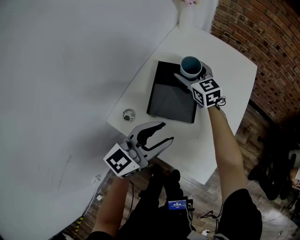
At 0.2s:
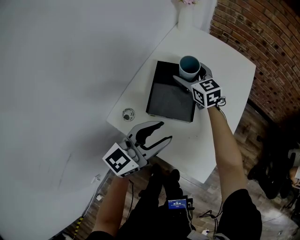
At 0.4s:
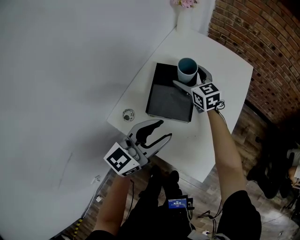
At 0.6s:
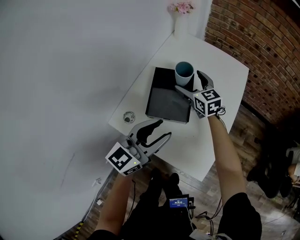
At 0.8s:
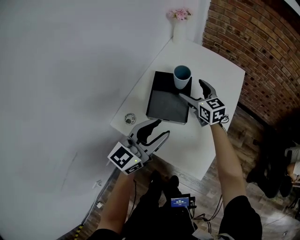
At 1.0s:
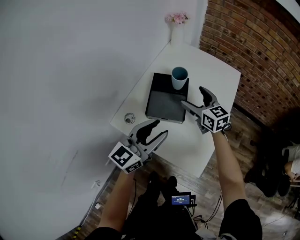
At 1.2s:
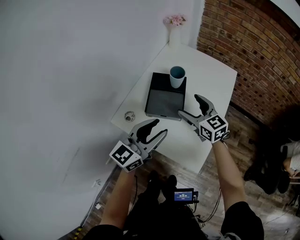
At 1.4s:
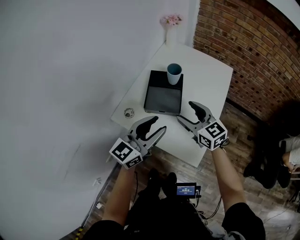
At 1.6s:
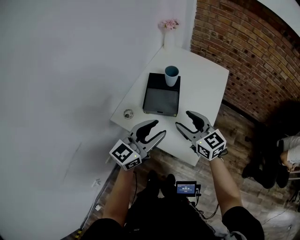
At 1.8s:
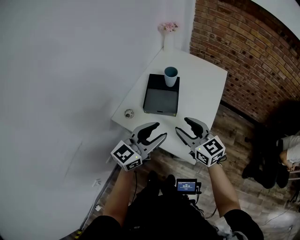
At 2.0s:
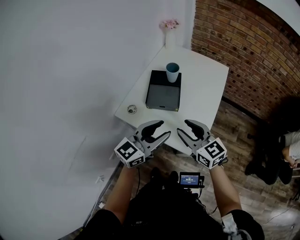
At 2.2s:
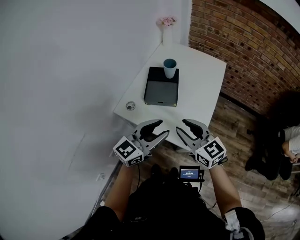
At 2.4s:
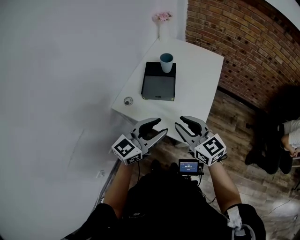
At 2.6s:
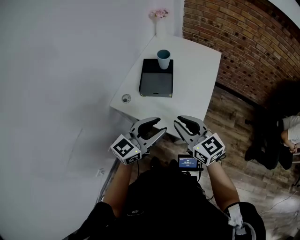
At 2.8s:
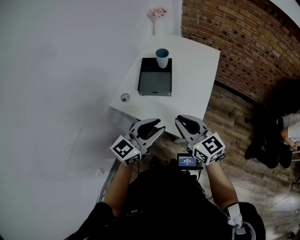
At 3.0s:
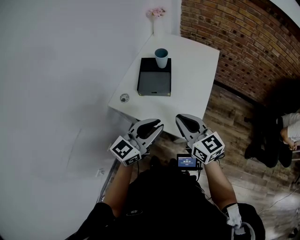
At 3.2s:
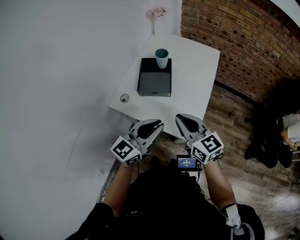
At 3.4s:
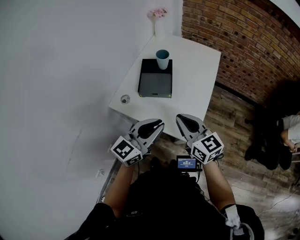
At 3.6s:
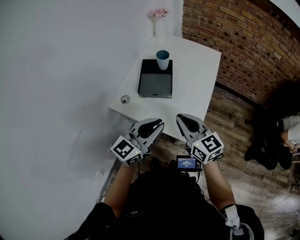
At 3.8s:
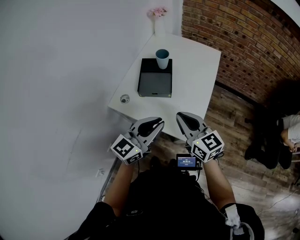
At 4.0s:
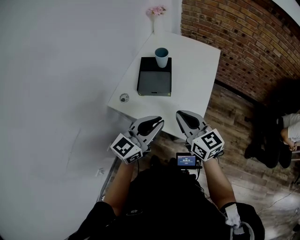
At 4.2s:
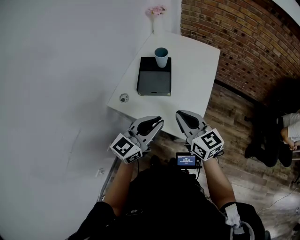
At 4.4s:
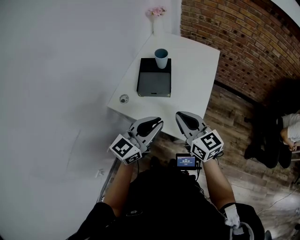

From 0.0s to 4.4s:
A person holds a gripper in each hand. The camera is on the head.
From 0.0s to 1.4s: The left gripper is displaced upward by roughly 5 cm. Meanwhile the right gripper is displaced backward and upward by roughly 25 cm.
From 1.4s to 3.0s: The two grippers go approximately 15 cm backward. The right gripper closes up.
From 3.0s to 4.4s: There are only small adjustments of the grippers.

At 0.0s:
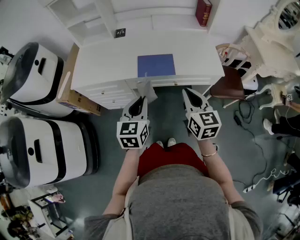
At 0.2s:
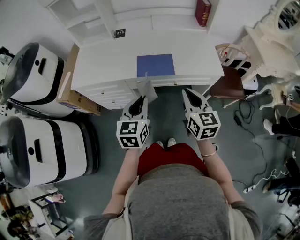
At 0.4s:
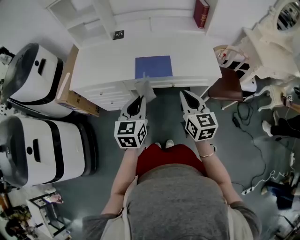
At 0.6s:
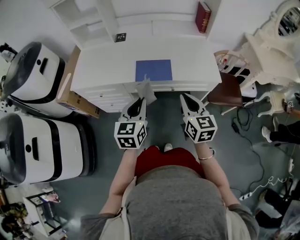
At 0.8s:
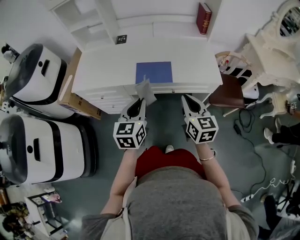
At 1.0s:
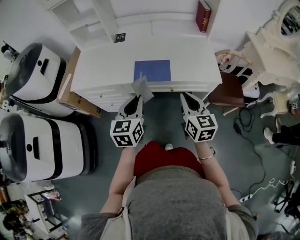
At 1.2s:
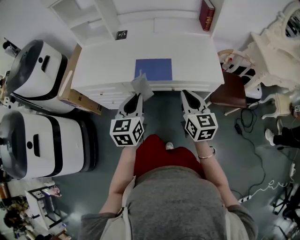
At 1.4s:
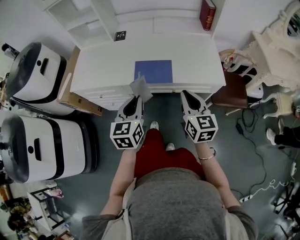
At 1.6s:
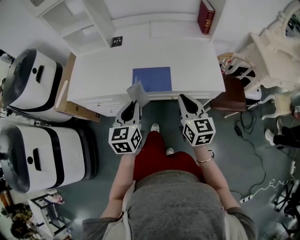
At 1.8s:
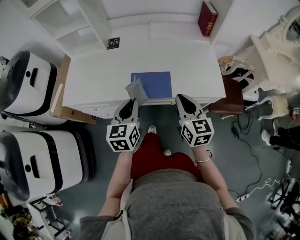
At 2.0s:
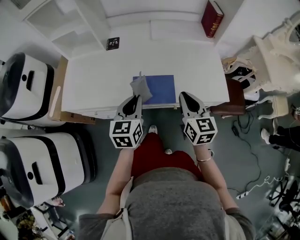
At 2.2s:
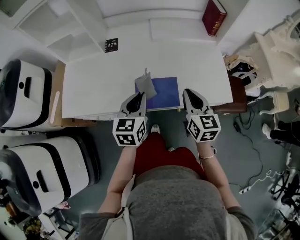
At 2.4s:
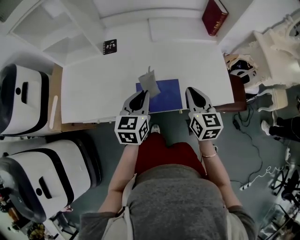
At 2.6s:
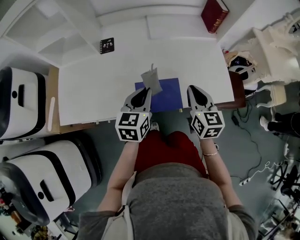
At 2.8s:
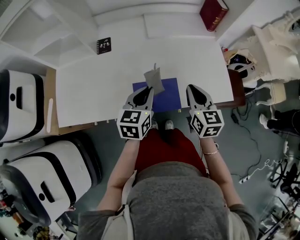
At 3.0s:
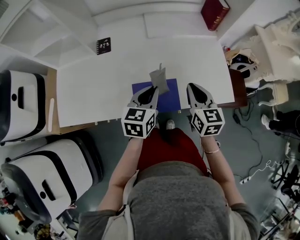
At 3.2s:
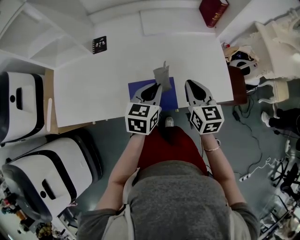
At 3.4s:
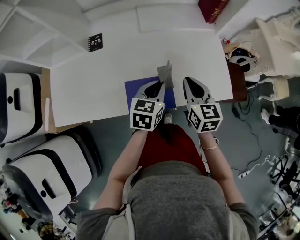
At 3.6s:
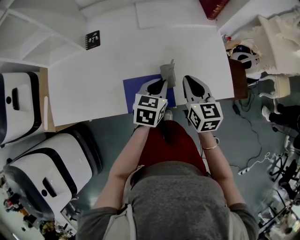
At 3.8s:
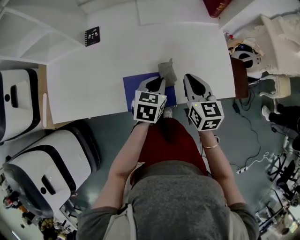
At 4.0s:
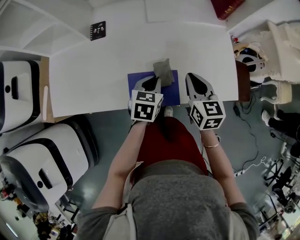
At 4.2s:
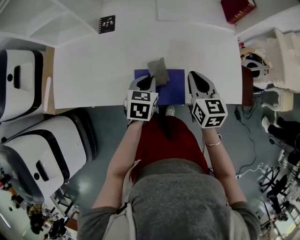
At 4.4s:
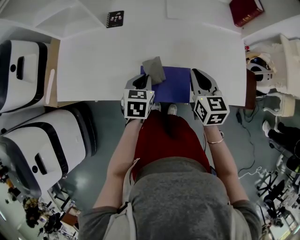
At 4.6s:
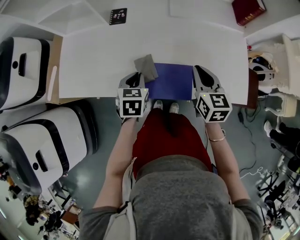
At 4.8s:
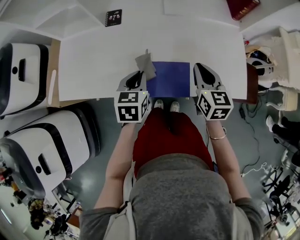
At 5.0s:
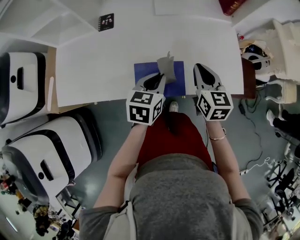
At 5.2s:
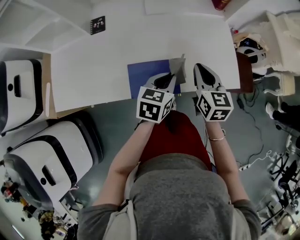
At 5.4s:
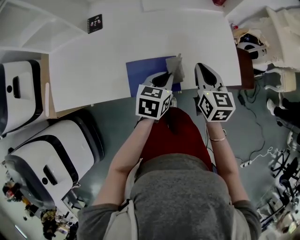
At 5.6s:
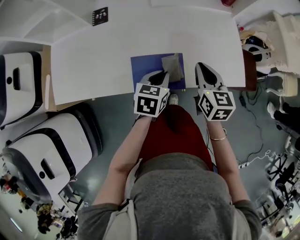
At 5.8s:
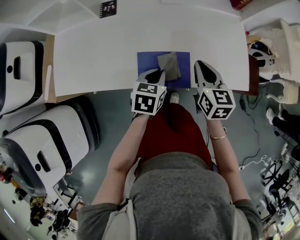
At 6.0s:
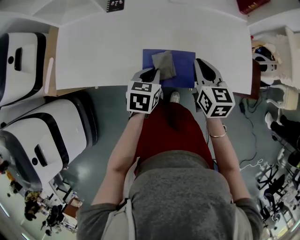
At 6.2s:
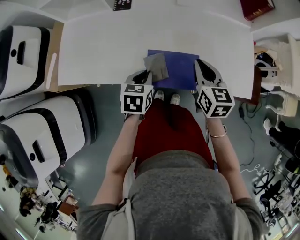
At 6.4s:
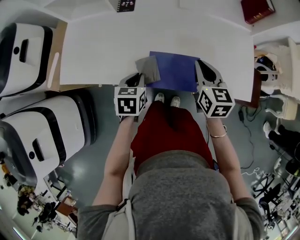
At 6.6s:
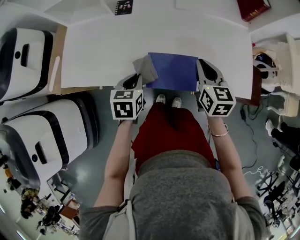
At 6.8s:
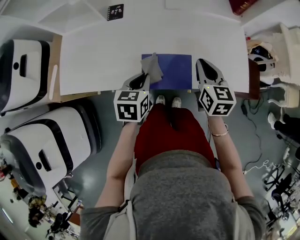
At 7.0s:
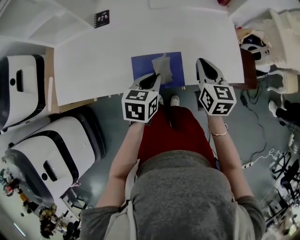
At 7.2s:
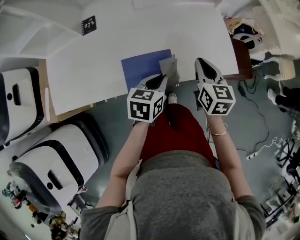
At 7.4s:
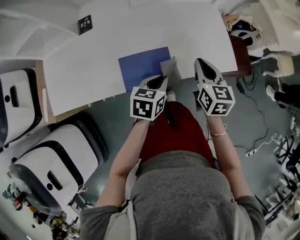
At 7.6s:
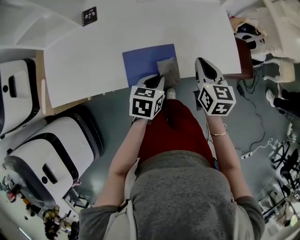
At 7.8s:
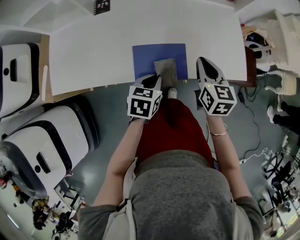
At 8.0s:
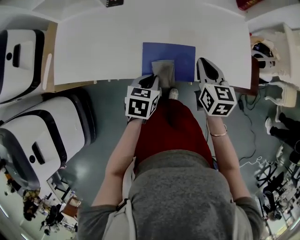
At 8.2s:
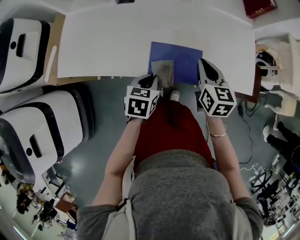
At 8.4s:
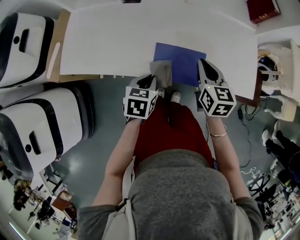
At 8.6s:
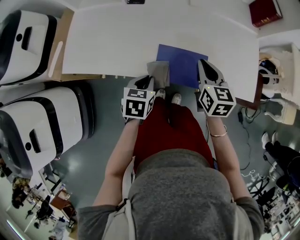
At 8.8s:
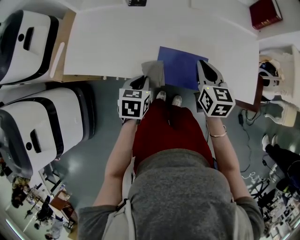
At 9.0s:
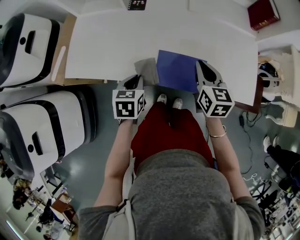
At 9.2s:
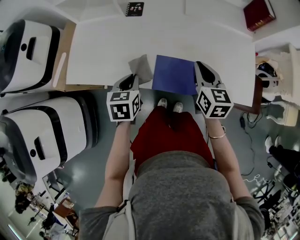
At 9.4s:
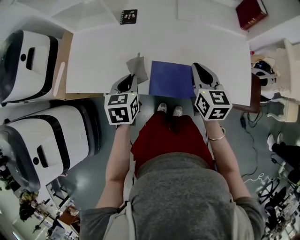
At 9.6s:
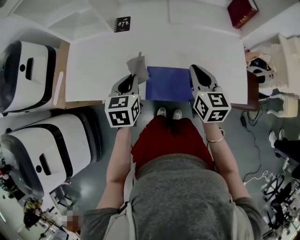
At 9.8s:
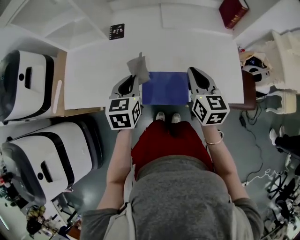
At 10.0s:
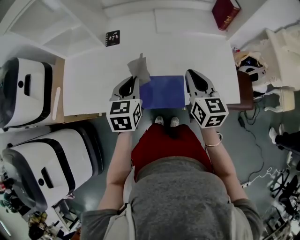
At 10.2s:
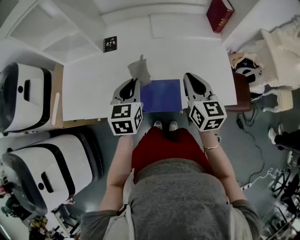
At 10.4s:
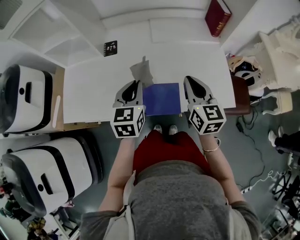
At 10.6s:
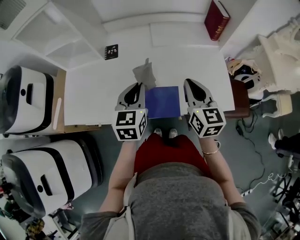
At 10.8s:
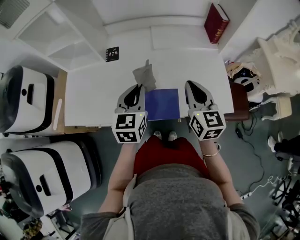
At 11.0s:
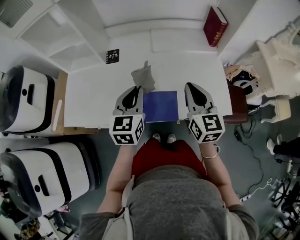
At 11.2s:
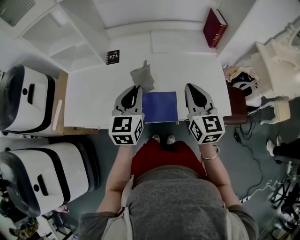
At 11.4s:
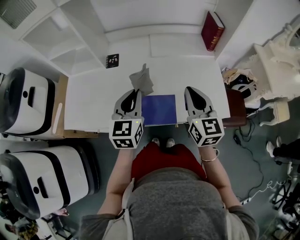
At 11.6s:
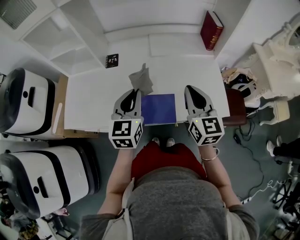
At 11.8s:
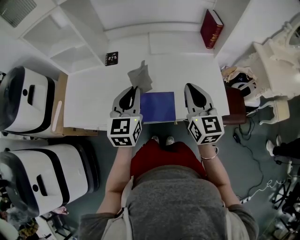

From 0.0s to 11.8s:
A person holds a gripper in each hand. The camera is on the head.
From 0.0s to 1.4s: The right gripper moves approximately 5 cm. The left gripper changes place by about 5 cm.
From 1.4s to 3.0s: The two grippers go roughly 25 cm forward. The left gripper changes its angle by approximately 20 degrees.
From 3.0s to 4.4s: The right gripper shifts by about 5 cm, while the left gripper travels downward and to the left by roughly 10 cm, and swivels roughly 20 degrees.
From 4.4s to 6.0s: The right gripper travels to the right and back again, about 10 cm each way. The left gripper moves left and right over some 20 cm, changing direction 2 times.
From 6.0s to 7.4s: The right gripper moves approximately 10 cm. The left gripper changes place by roughly 10 cm.
From 7.4s to 8.8s: The left gripper ends up about 20 cm from where it was, and turns by about 30 degrees. Meanwhile the right gripper changes place by approximately 15 cm, and changes its angle by roughly 20 degrees.
From 8.8s to 10.4s: The right gripper moves upward and to the right, approximately 10 cm. Meanwhile the left gripper moves upward, forward and to the right, roughly 20 cm, and rotates roughly 30 degrees.
From 10.4s to 11.8s: The grippers both shift upward by about 5 cm.

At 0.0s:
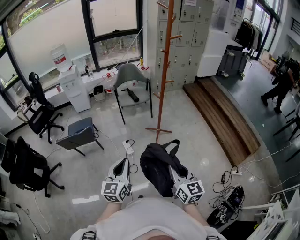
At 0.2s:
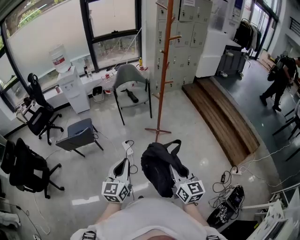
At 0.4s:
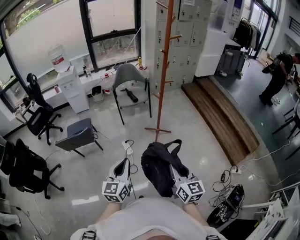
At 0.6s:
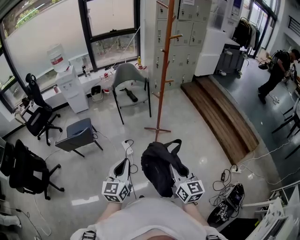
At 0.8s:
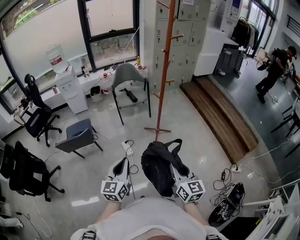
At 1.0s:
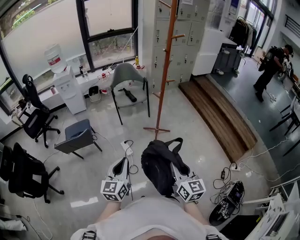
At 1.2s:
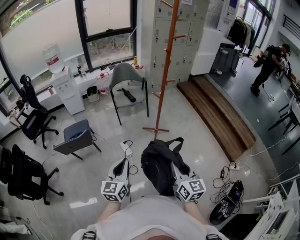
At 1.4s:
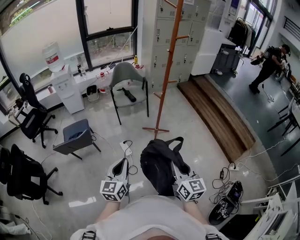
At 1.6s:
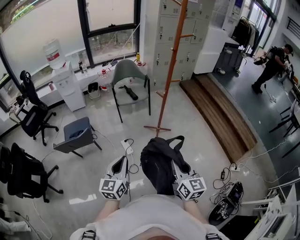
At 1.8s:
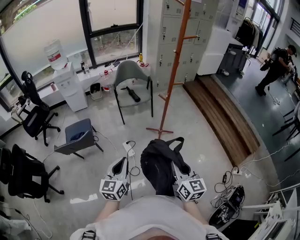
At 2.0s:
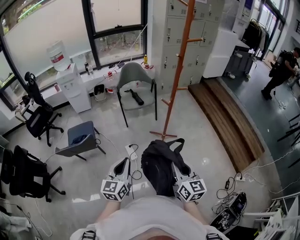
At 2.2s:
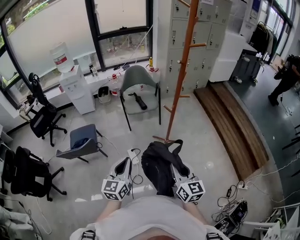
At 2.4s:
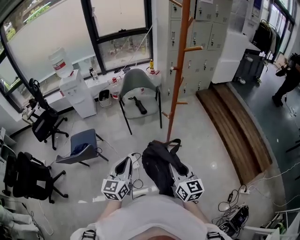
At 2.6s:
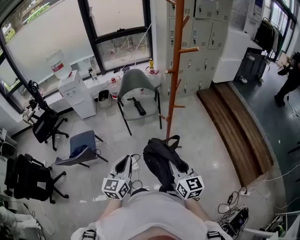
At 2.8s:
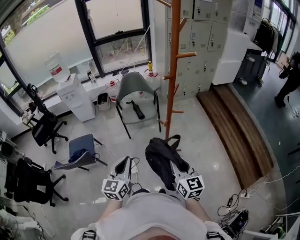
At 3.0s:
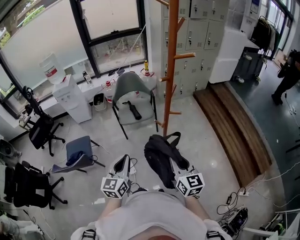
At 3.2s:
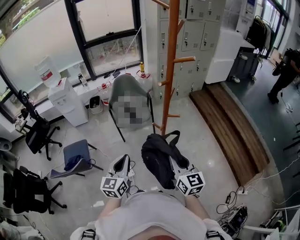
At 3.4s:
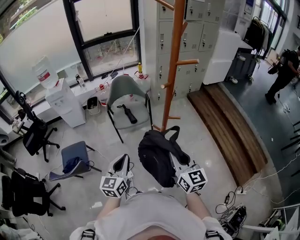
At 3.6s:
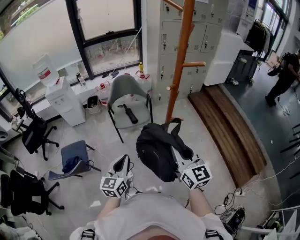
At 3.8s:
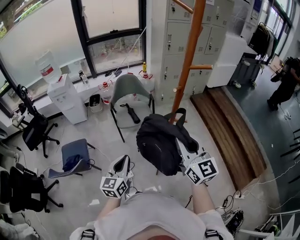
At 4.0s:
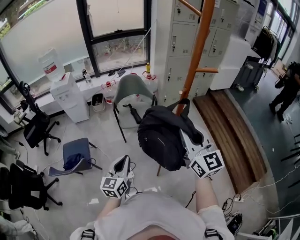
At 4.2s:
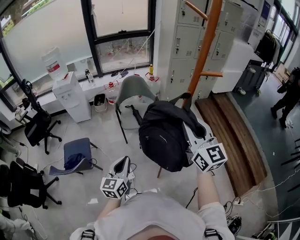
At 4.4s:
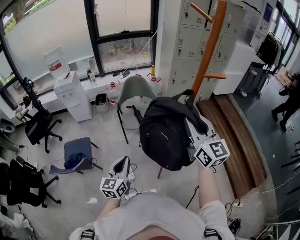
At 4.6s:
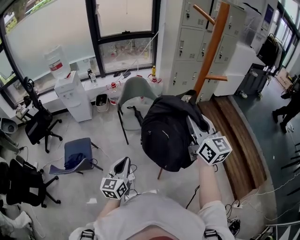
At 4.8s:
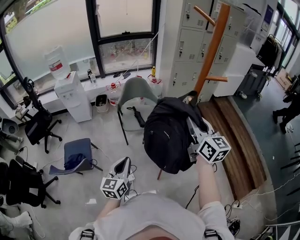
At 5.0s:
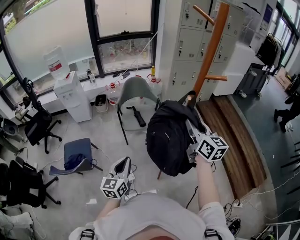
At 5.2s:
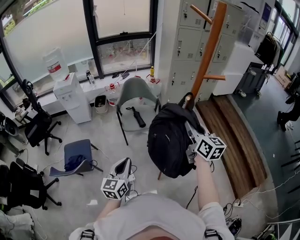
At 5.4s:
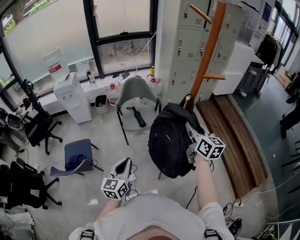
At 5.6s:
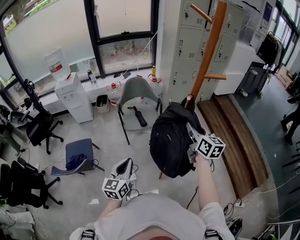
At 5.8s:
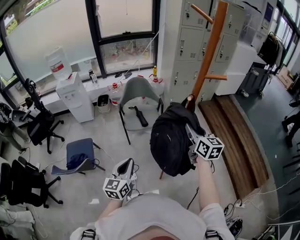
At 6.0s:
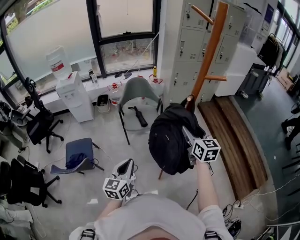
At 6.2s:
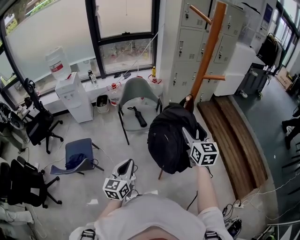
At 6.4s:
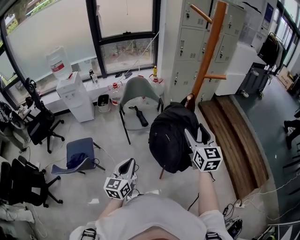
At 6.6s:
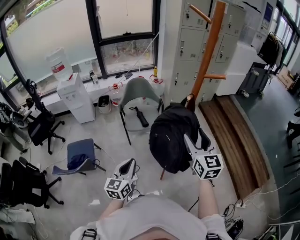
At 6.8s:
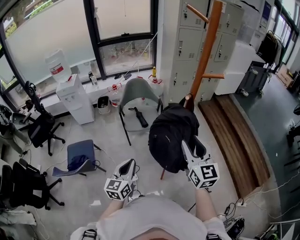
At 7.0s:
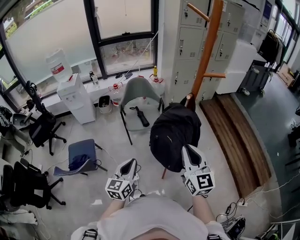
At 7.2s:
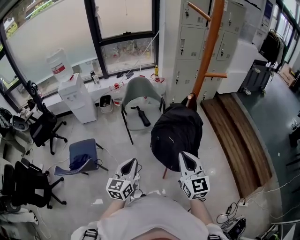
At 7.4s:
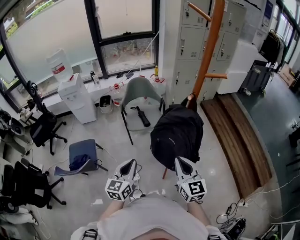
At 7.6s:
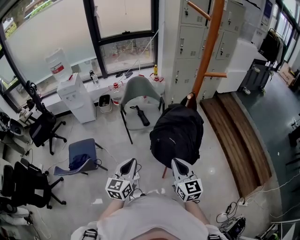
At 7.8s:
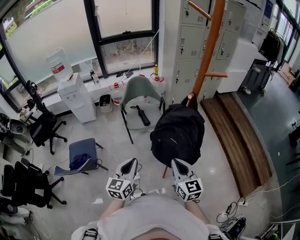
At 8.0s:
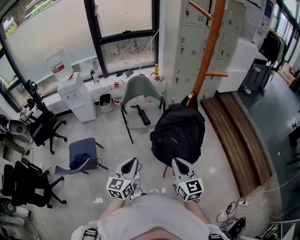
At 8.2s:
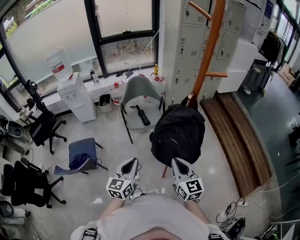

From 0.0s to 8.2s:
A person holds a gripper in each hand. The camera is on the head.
From 0.0s to 1.6s: The left gripper shifts about 10 cm to the left and forward. The right gripper heads forward and to the left, covering roughly 10 cm.
From 1.6s to 3.2s: The grippers both shift forward by approximately 30 cm.
From 3.2s to 5.0s: The left gripper travels to the left by some 5 cm; the right gripper goes about 20 cm forward and upward.
From 5.0s to 6.6s: The right gripper heads backward, covering about 5 cm, and opens.
From 6.6s to 8.2s: The right gripper goes approximately 15 cm downward, backward and to the left, and closes.
